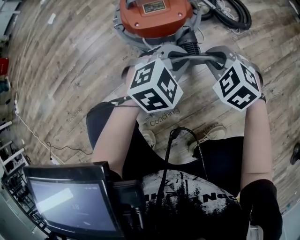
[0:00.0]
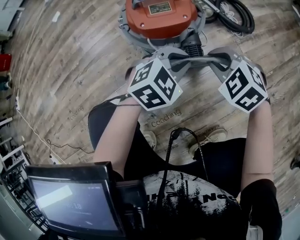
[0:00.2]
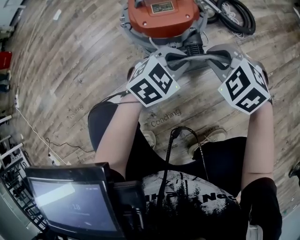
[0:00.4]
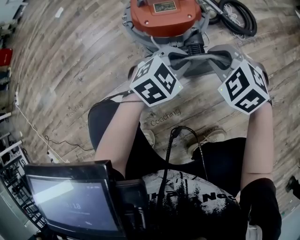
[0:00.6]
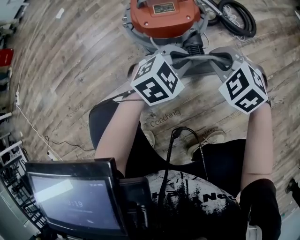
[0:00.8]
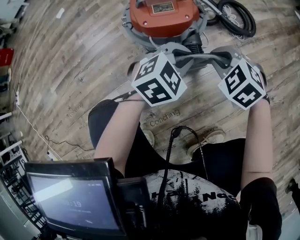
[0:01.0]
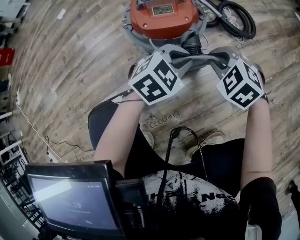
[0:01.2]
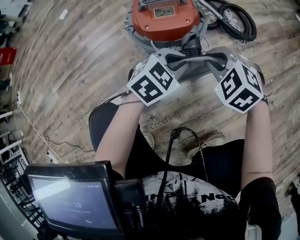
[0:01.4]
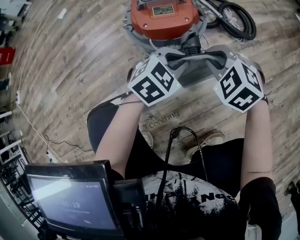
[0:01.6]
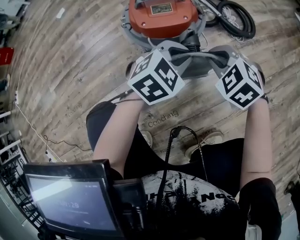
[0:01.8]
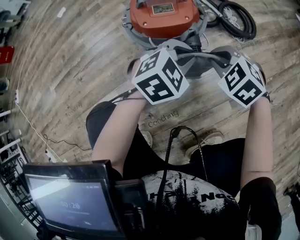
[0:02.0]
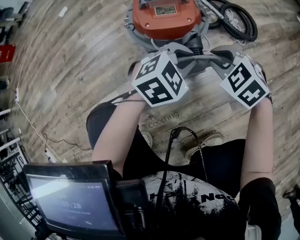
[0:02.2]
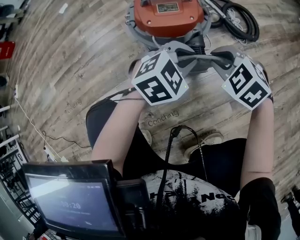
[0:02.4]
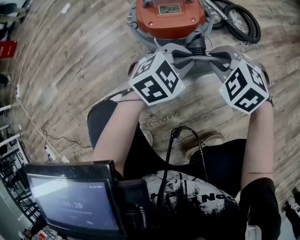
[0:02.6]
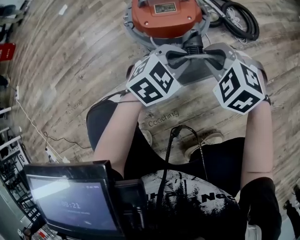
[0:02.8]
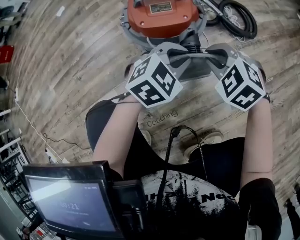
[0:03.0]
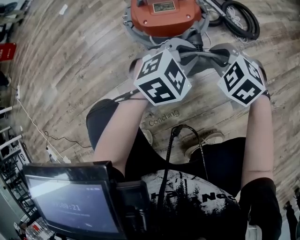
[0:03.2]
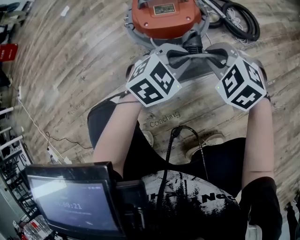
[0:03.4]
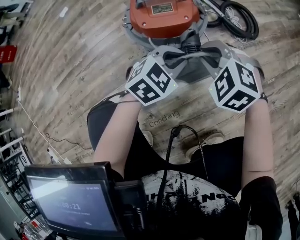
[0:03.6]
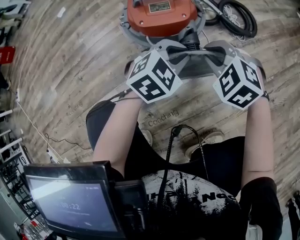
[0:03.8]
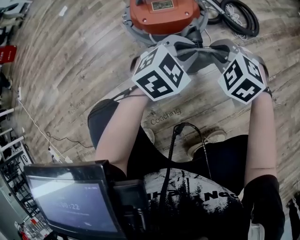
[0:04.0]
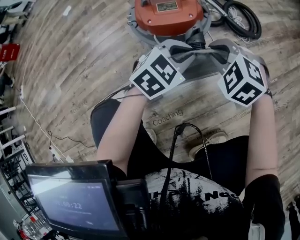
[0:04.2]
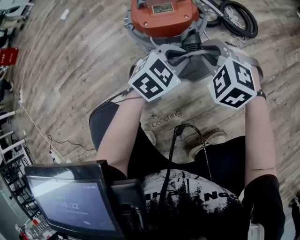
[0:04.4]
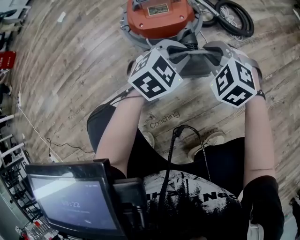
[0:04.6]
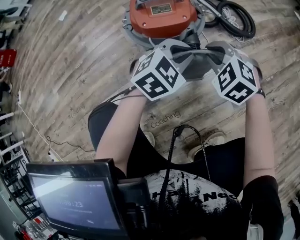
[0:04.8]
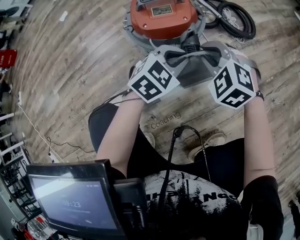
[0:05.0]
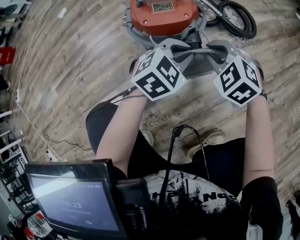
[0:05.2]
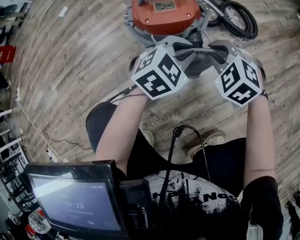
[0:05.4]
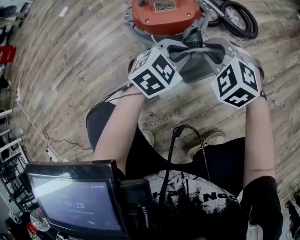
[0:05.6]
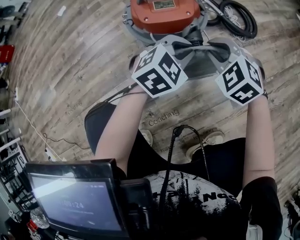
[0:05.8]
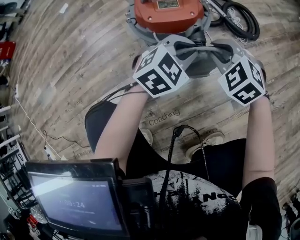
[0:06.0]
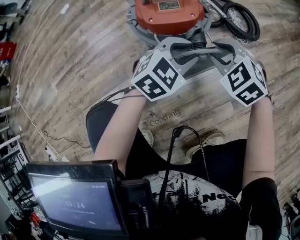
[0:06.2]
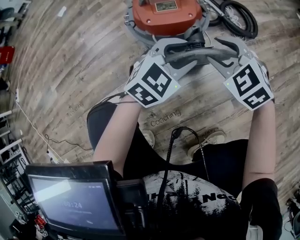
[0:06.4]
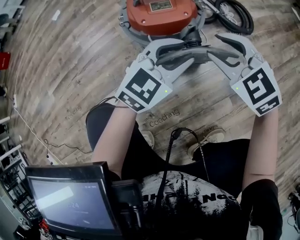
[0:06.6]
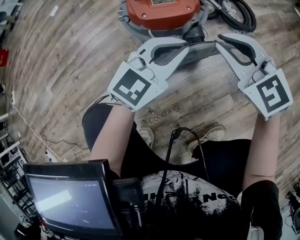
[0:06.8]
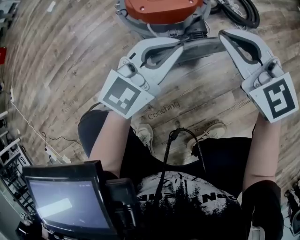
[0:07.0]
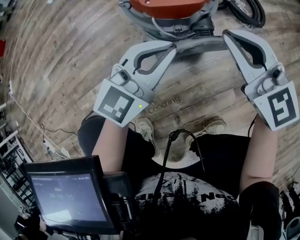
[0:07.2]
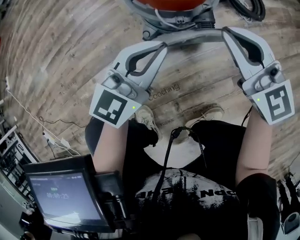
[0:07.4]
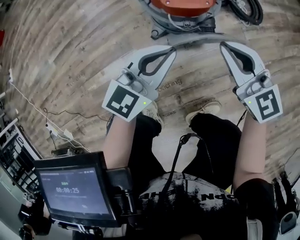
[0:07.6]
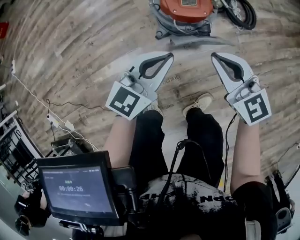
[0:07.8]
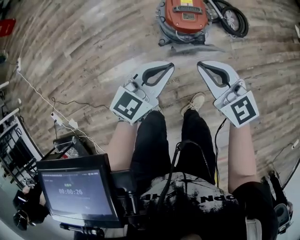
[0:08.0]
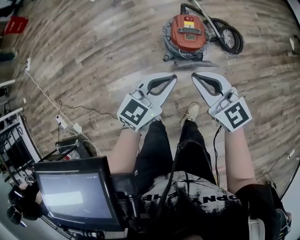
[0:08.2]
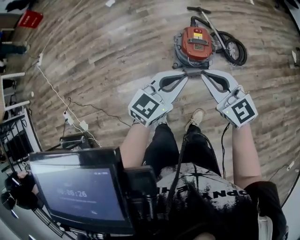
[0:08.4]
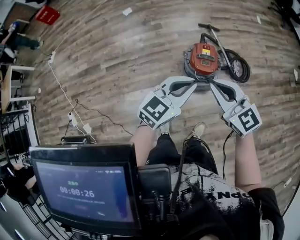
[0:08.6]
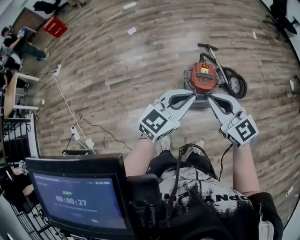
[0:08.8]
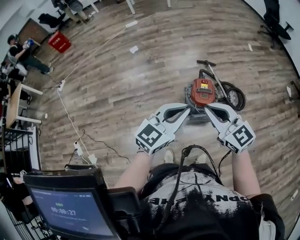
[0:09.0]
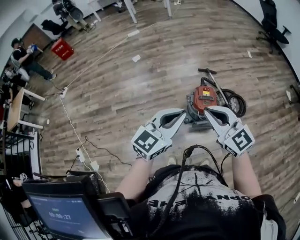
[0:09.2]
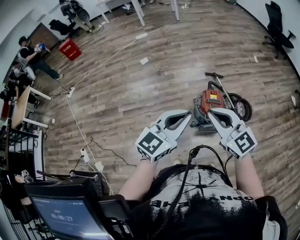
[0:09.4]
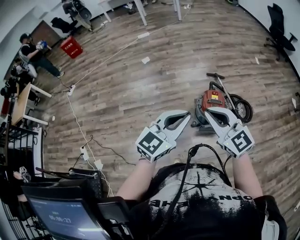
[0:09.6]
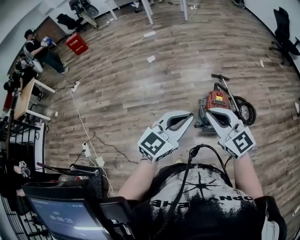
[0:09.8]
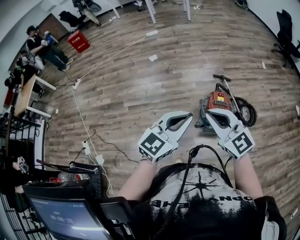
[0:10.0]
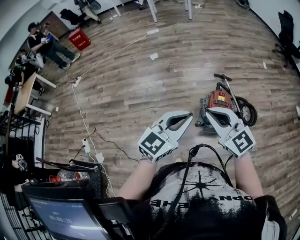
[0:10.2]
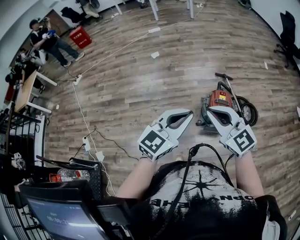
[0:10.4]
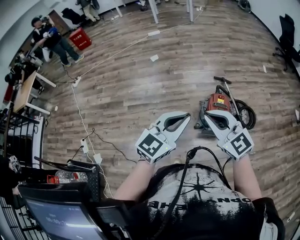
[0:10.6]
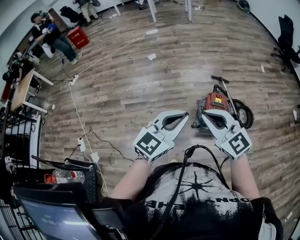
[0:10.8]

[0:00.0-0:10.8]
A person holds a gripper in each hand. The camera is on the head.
0.0 to 4.6 s: The grippers move only a little.
4.6 to 6.2 s: The left gripper opens up.
6.2 to 7.8 s: The left gripper travels upward, to the left and backward by about 30 cm, turns by approximately 40 degrees, and closes. Meanwhile the right gripper goes roughly 25 cm upward, tilts its fingers about 30 degrees upward, and closes its fingers.
7.8 to 9.2 s: The grippers both shift upward by about 40 cm.
9.2 to 10.8 s: Both grippers move to the left, approximately 5 cm.

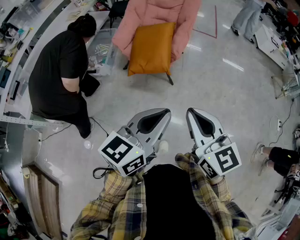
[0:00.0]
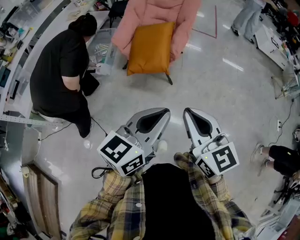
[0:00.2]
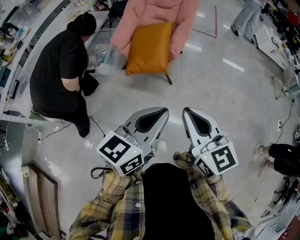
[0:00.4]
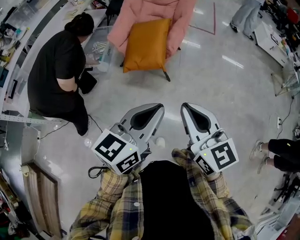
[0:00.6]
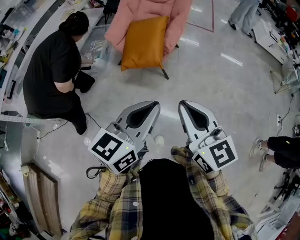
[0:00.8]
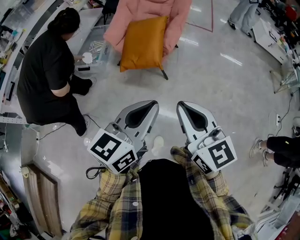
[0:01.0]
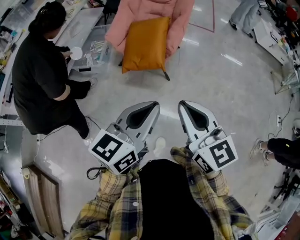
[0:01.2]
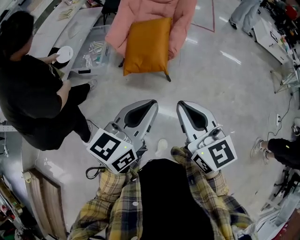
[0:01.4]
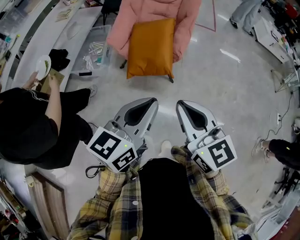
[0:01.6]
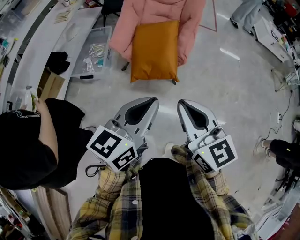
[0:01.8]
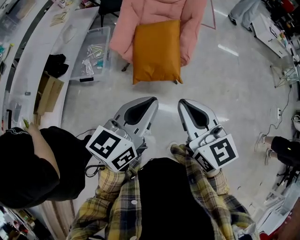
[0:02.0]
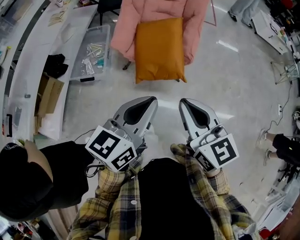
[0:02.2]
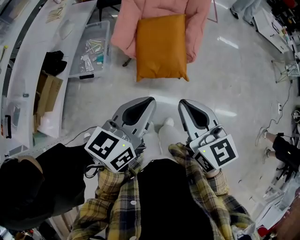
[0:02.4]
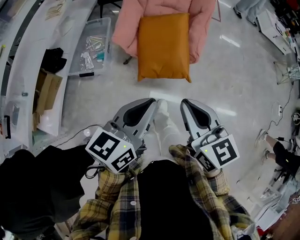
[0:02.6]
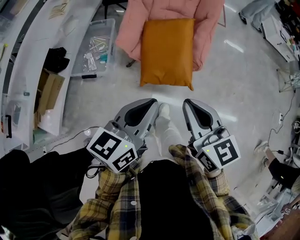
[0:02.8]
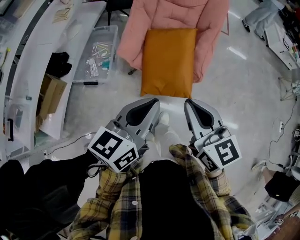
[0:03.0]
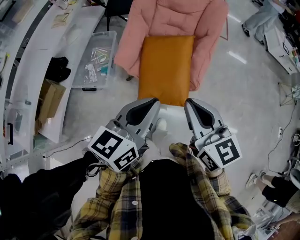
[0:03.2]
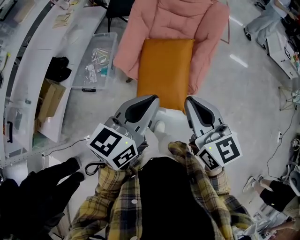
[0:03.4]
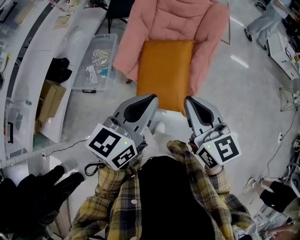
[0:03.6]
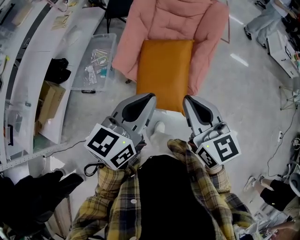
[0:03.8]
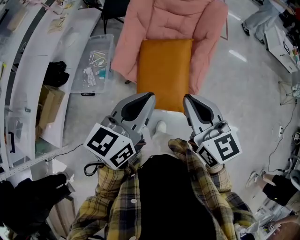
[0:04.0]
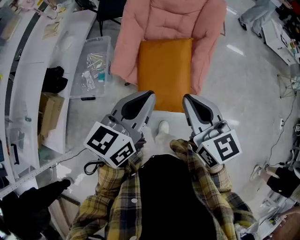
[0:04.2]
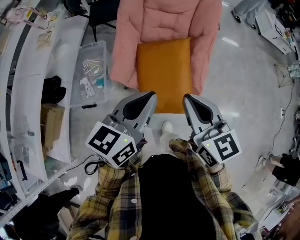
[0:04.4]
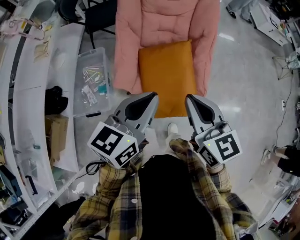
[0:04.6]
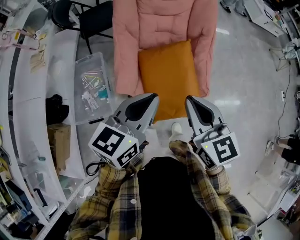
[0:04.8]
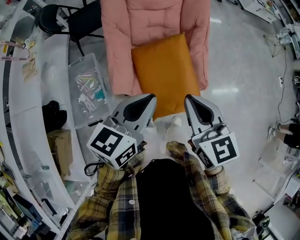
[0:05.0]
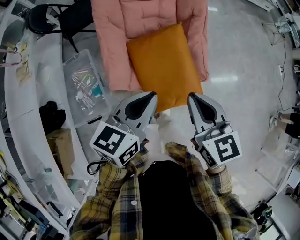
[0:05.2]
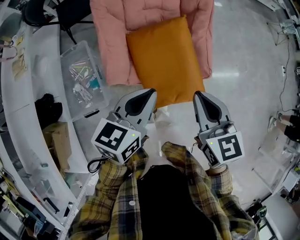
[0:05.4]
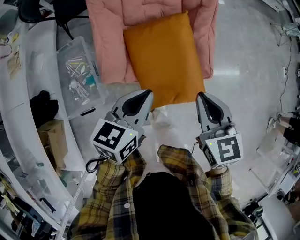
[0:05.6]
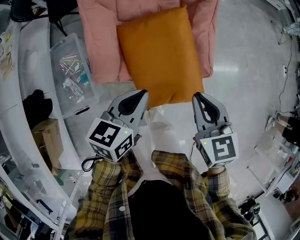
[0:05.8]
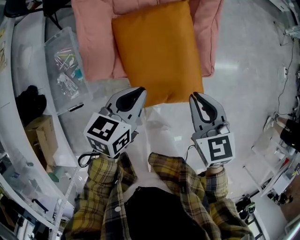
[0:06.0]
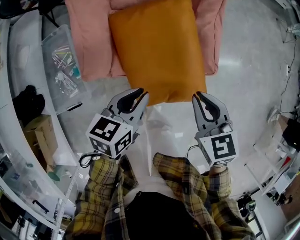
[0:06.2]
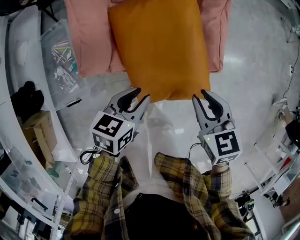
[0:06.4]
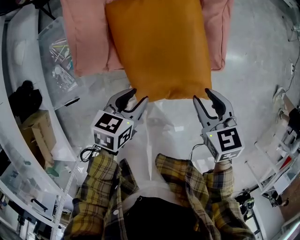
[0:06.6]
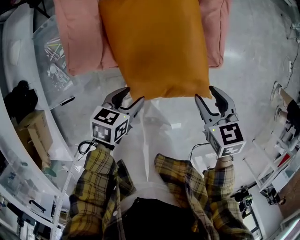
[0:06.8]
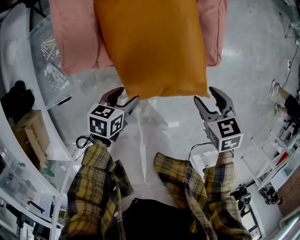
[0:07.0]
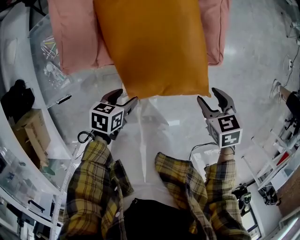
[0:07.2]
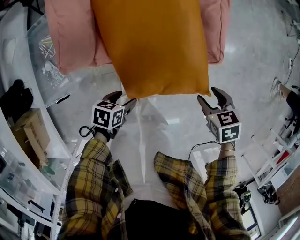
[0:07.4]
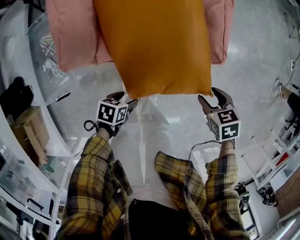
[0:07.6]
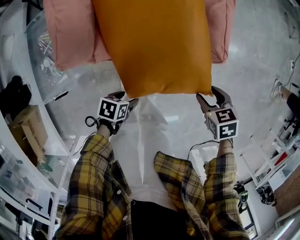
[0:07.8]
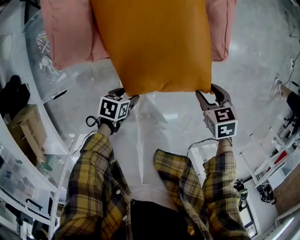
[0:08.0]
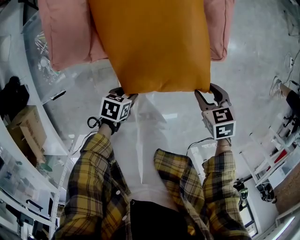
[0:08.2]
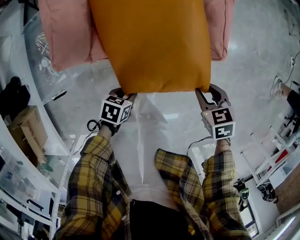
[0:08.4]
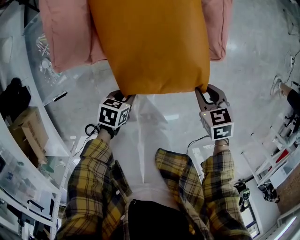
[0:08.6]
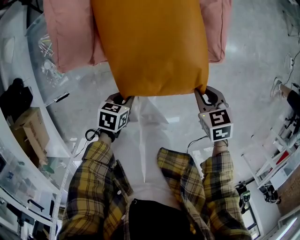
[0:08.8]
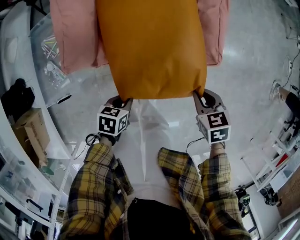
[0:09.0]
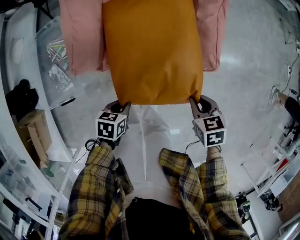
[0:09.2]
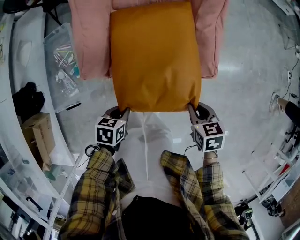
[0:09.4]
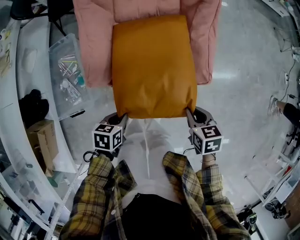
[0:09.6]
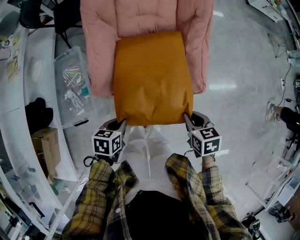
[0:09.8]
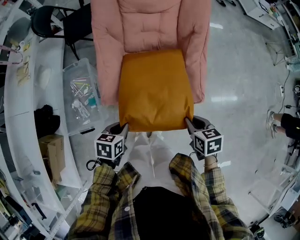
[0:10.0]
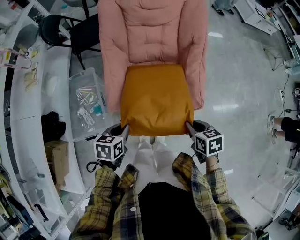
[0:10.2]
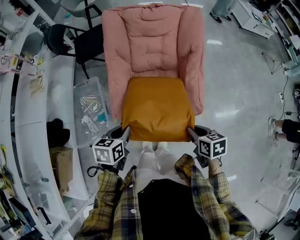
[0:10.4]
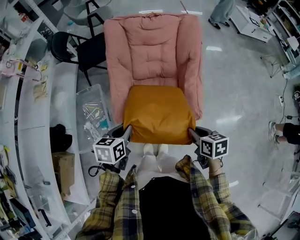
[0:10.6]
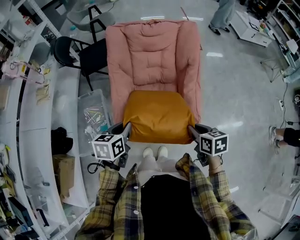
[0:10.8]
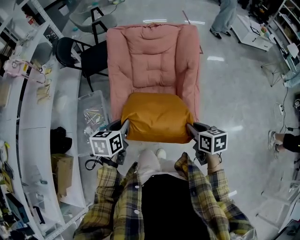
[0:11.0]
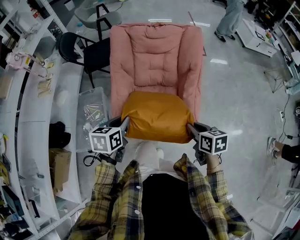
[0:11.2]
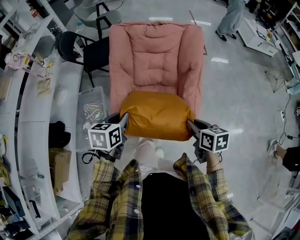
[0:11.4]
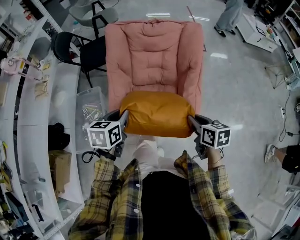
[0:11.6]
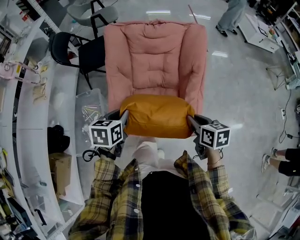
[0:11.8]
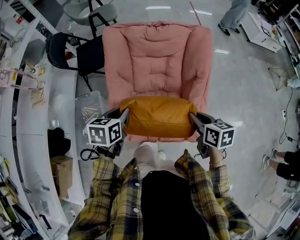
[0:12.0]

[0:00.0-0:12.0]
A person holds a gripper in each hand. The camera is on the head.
0.0 to 1.6 s: Both grippers move forward and to the left, approximately 10 cm.
1.6 to 3.0 s: Both grippers move forward and to the left, about 25 cm.
3.0 to 4.4 s: Both grippers move forward, approximately 15 cm.
4.4 to 6.0 s: Both grippers travel together downward, some 25 cm. The left gripper swivels some 30 degrees, while the right gripper turns by approximately 30 degrees.
6.0 to 7.6 s: Both grippers travel together downward, approximately 25 cm. The right gripper tilts its fingers some 30 degrees downward, and opens its fingers; the left gripper swivels about 40 degrees, and opens its fingers.
7.6 to 9.0 s: The left gripper changes place by some 5 cm, and closes. The right gripper closes its fingers.
9.0 to 10.4 s: The two grippers go approximately 25 cm upward. The right gripper swivels roughly 20 degrees. Meanwhile the left gripper rotates roughly 20 degrees.
10.4 to 12.0 s: Both grippers travel together forward, some 20 cm.

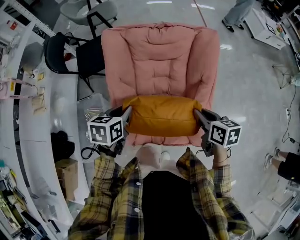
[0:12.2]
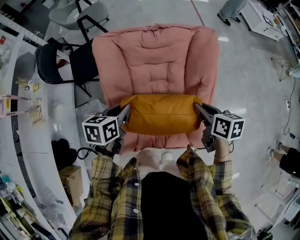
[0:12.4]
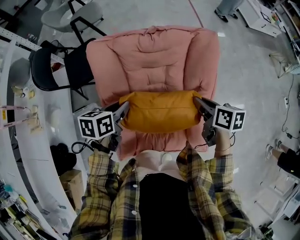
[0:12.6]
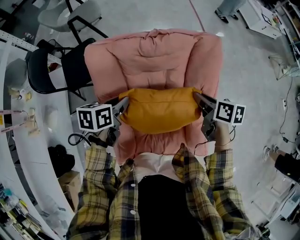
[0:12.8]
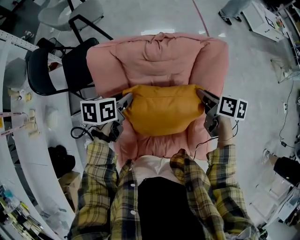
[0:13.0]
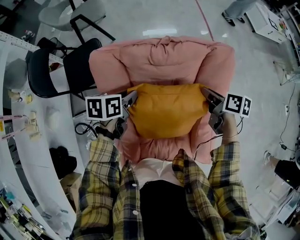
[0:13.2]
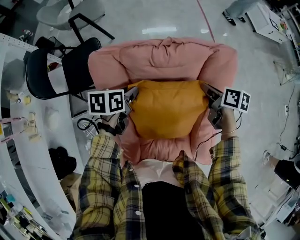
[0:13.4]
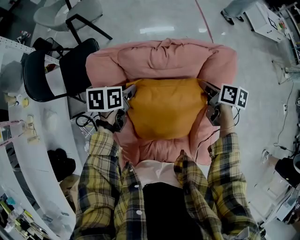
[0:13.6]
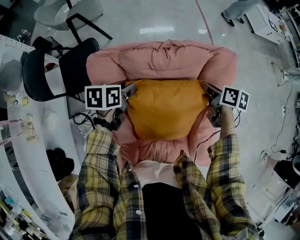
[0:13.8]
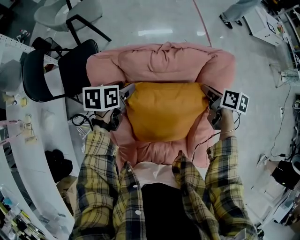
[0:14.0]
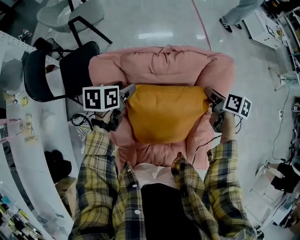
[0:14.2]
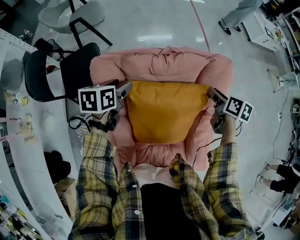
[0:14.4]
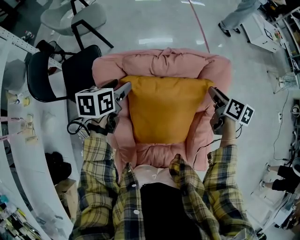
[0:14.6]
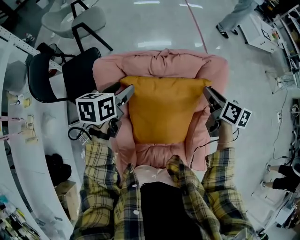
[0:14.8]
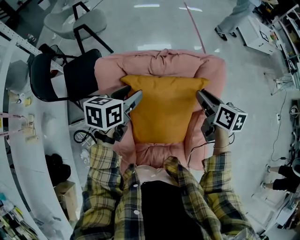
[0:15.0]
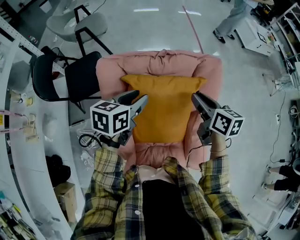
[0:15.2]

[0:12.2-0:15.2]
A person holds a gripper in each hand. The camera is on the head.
12.2 to 13.8 s: The two grippers go approximately 30 cm forward.
13.8 to 15.2 s: The left gripper moves upward, backward and to the right, about 15 cm, and changes its angle by about 20 degrees, while the right gripper shifts approximately 15 cm upward and backward, and turns by about 20 degrees.
